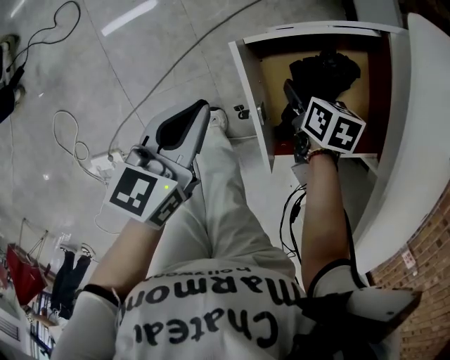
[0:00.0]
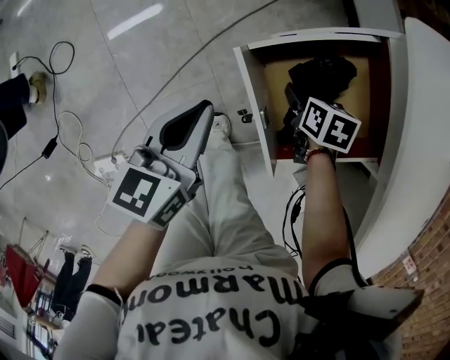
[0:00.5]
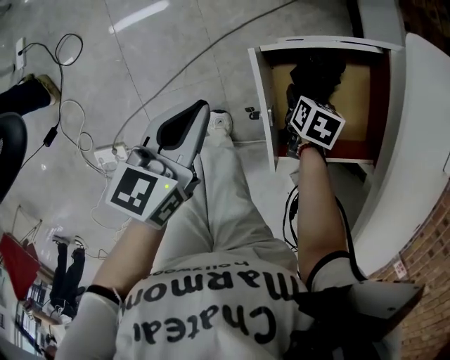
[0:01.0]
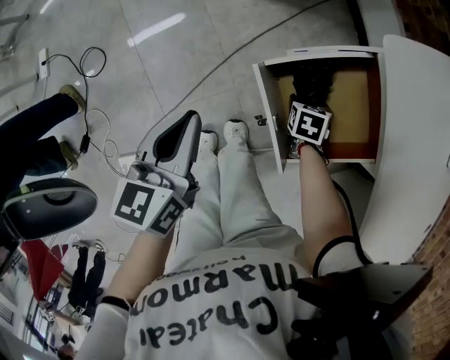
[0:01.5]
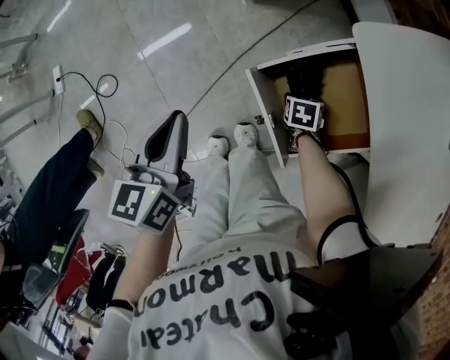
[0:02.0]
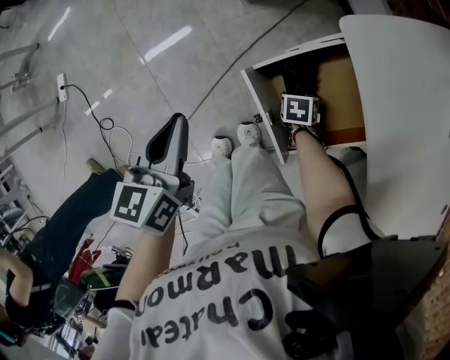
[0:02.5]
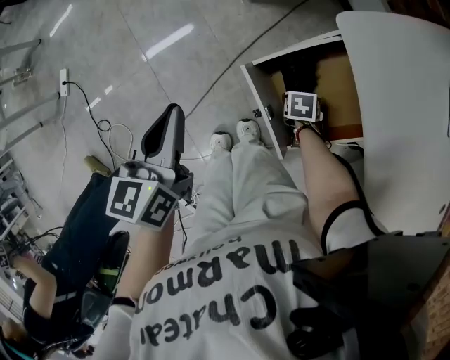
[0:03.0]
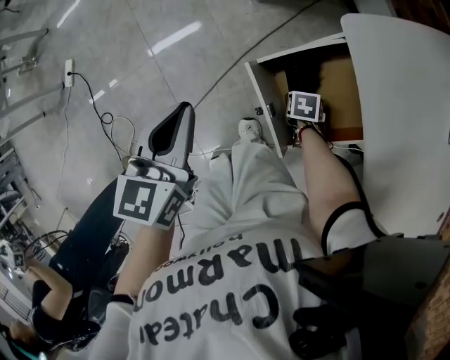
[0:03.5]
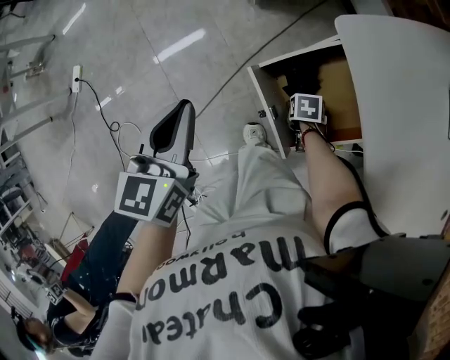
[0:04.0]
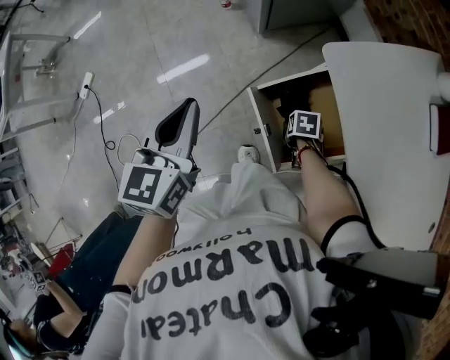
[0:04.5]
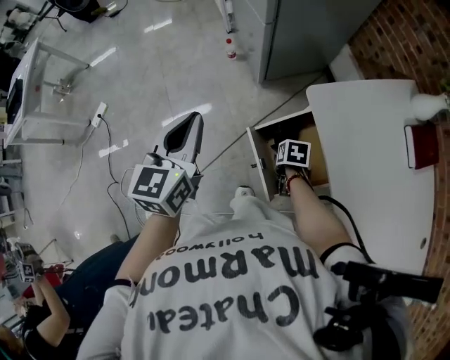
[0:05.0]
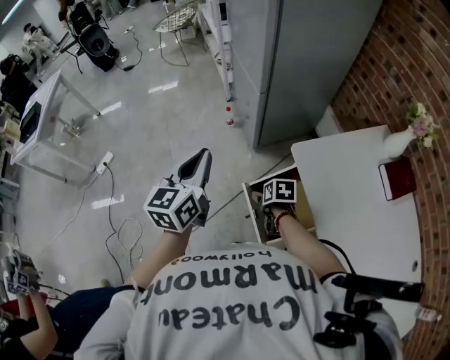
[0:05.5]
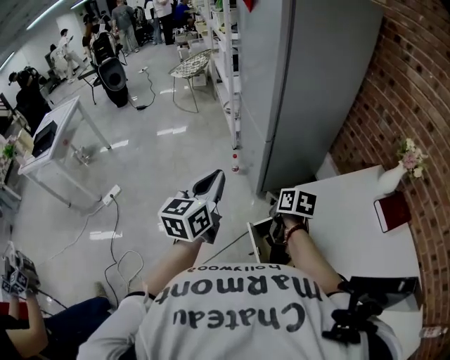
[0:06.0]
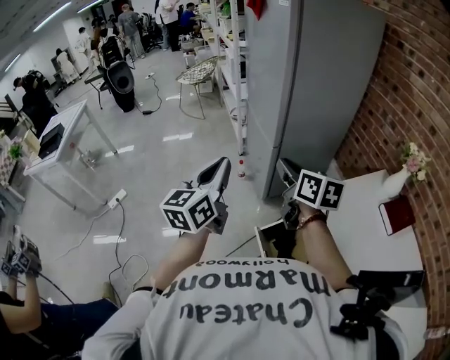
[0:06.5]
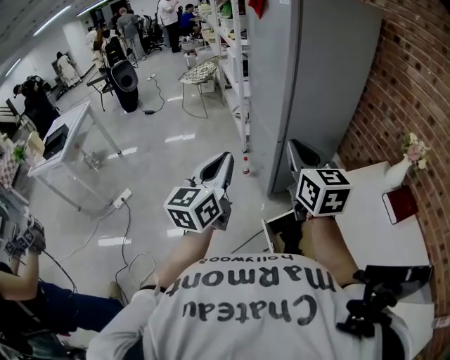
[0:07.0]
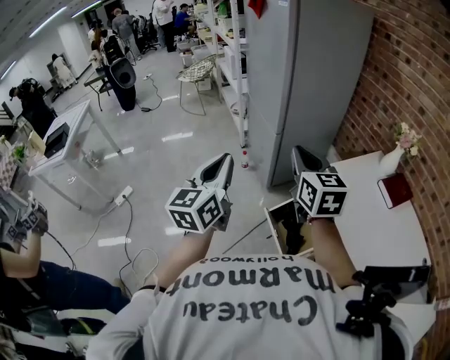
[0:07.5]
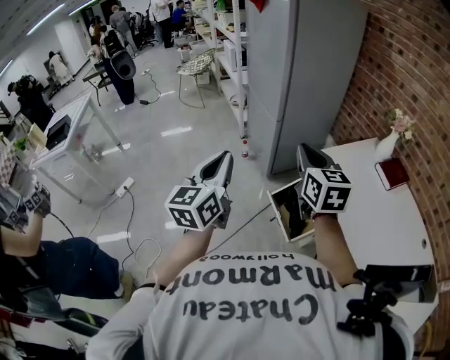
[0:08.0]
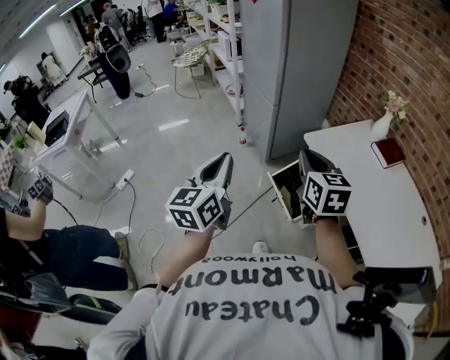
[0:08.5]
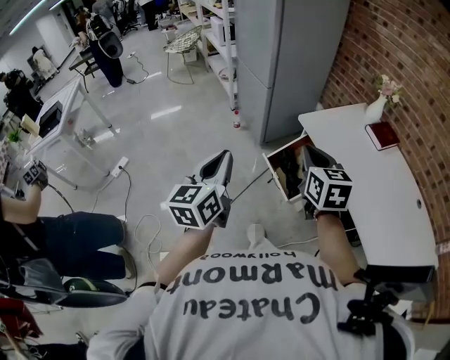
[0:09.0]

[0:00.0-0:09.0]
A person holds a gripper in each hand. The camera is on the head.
0:00.0 to 0:02.0: The left gripper moves upward, about 15 cm.
0:02.0 to 0:04.5: The left gripper heads upward, covering about 10 cm. The right gripper is displaced upward by roughly 5 cm.
0:04.5 to 0:07.0: The right gripper travels upward by some 60 cm, tips its fingers upward by roughly 80 degrees, and closes its fingers; the left gripper is displaced upward by about 25 cm, and changes its angle by about 30 degrees.
0:07.0 to 0:09.0: The two grippers go approximately 25 cm backward. The right gripper rotates approximately 20 degrees.

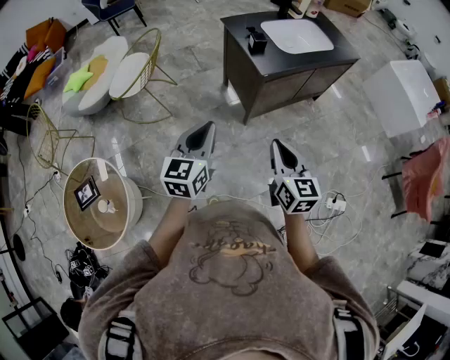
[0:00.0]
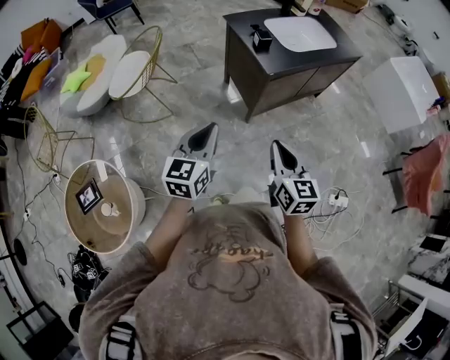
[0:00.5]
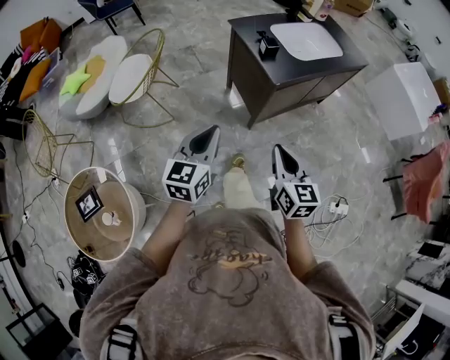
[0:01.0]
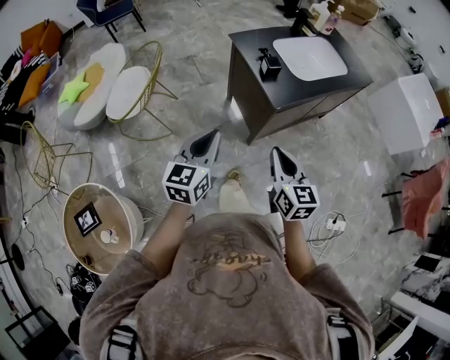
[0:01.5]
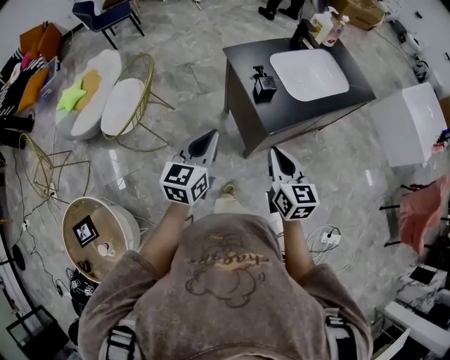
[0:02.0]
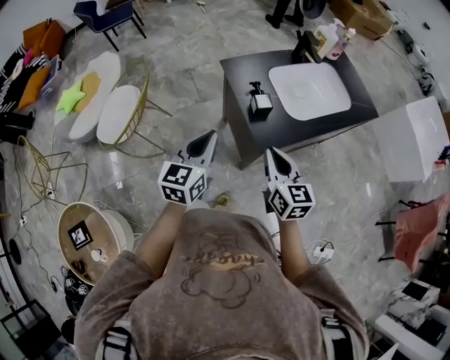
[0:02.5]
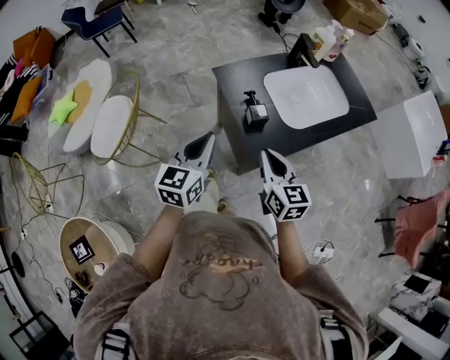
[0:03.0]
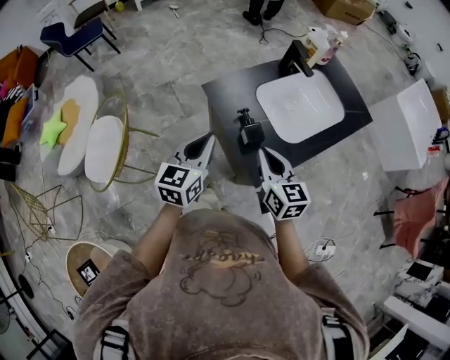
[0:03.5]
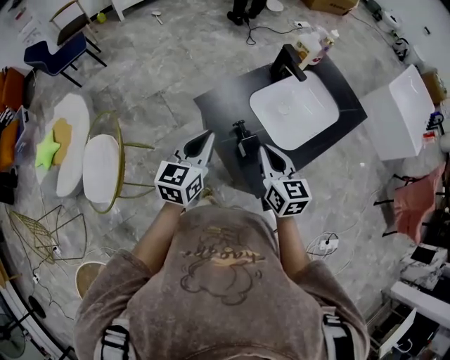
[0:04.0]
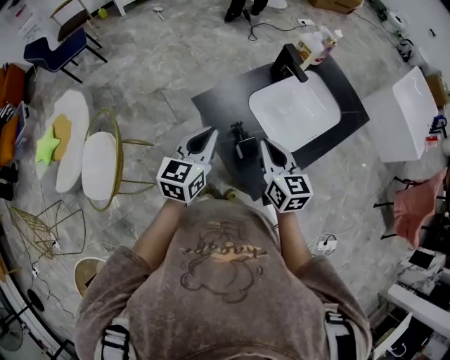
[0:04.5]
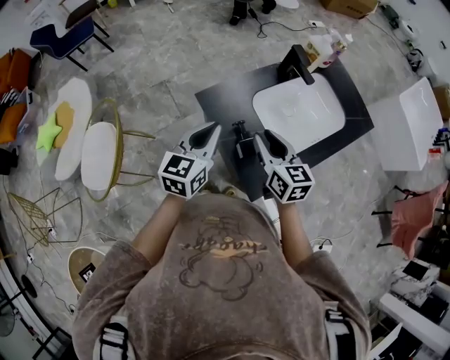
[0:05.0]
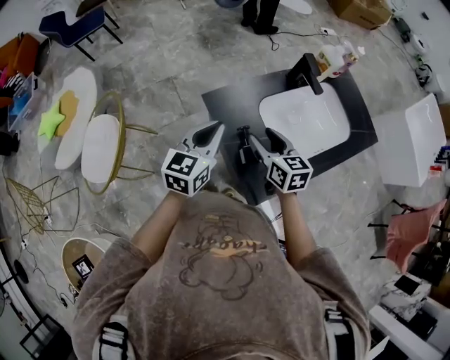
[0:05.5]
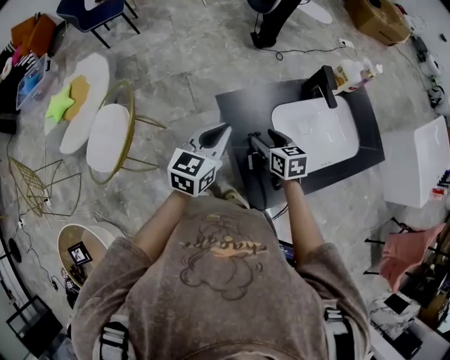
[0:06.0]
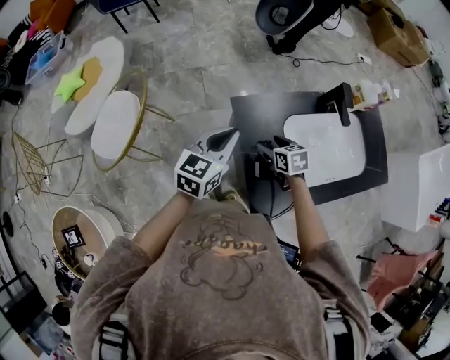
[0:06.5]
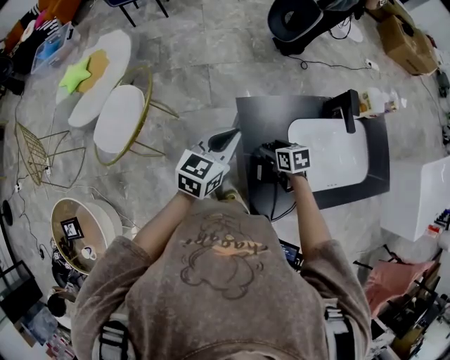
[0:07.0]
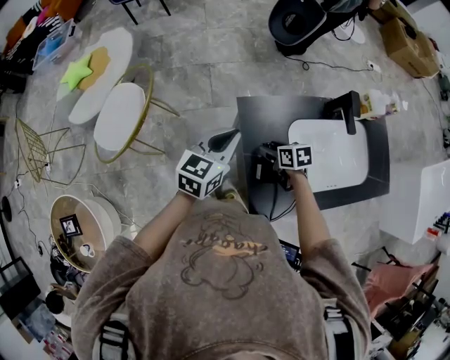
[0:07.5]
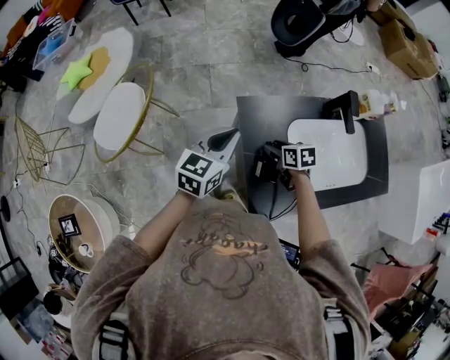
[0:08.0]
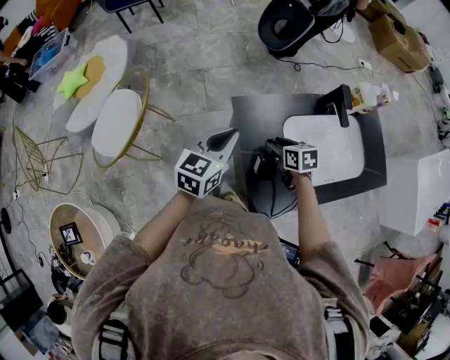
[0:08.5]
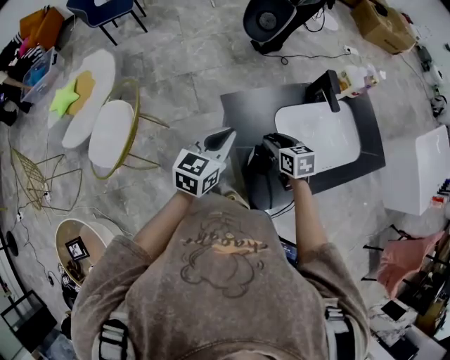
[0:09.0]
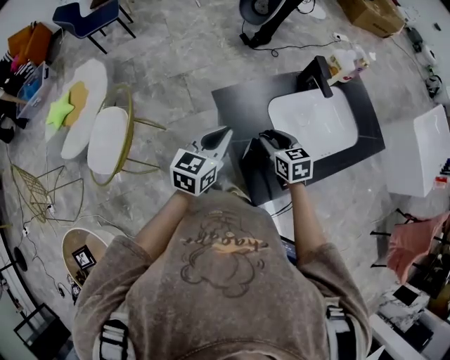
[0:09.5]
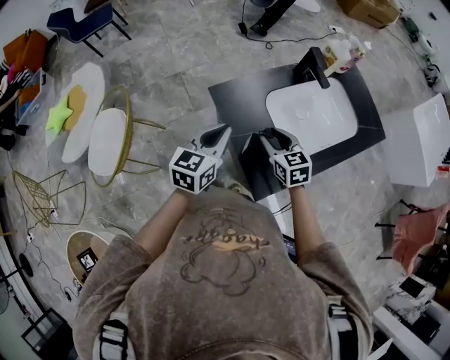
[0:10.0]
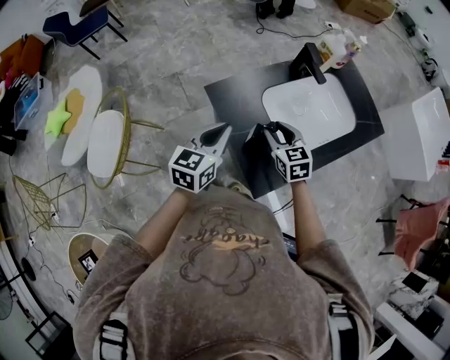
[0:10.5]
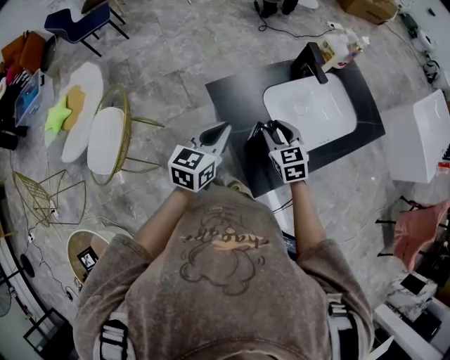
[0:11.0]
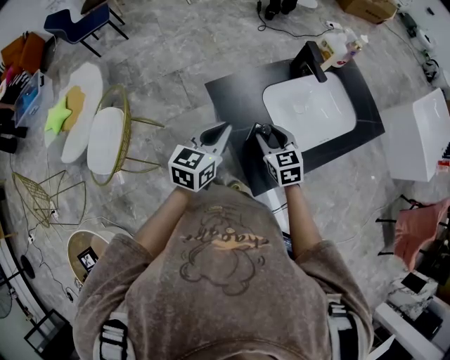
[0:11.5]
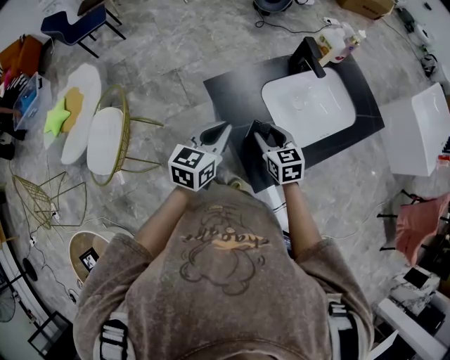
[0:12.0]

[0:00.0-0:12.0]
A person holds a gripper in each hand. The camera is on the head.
0:00.0 to 0:02.0: Both grippers travel together forward, some 30 cm.
0:02.0 to 0:04.0: Both grippers move forward, roughly 30 cm.
0:04.0 to 0:06.0: The right gripper moves forward and downward, roughly 15 cm, swivels roughly 30 degrees, and opens. Meanwhile the left gripper shifts about 5 cm forward.
0:06.0 to 0:08.0: The right gripper travels downward by some 10 cm, and turns by some 20 degrees.
0:08.0 to 0:10.0: The left gripper is displaced backward by about 5 cm; the right gripper goes roughly 10 cm upward and backward, and rotates about 30 degrees.
0:10.0 to 0:12.0: The grippers move only a little.

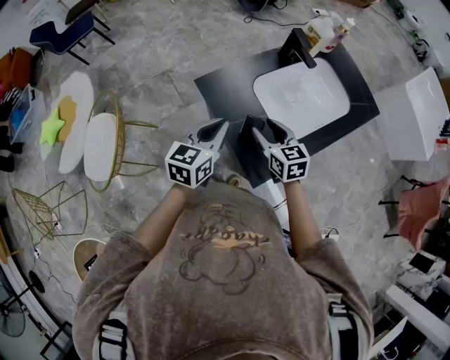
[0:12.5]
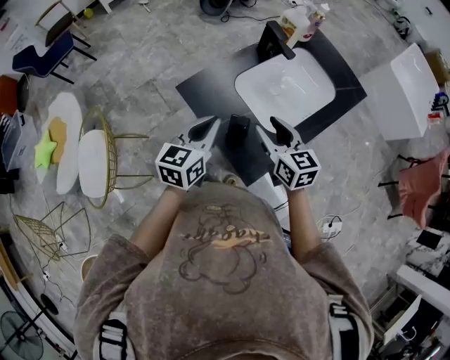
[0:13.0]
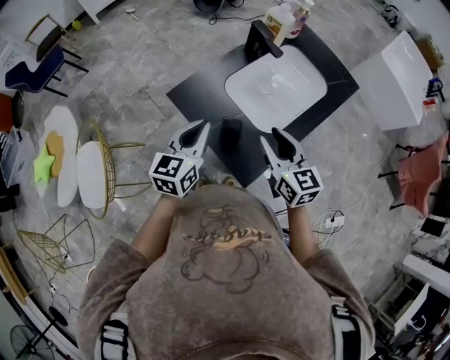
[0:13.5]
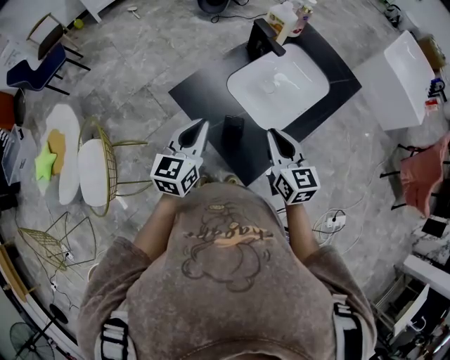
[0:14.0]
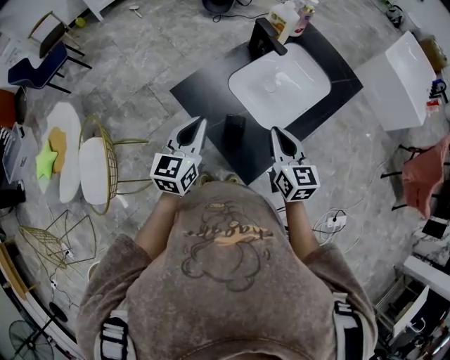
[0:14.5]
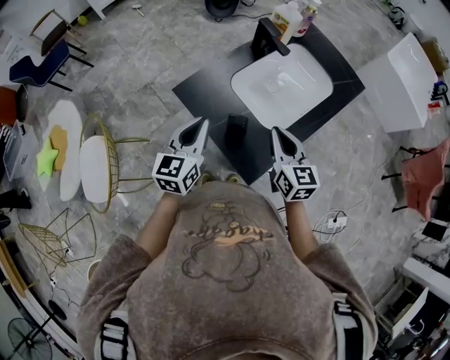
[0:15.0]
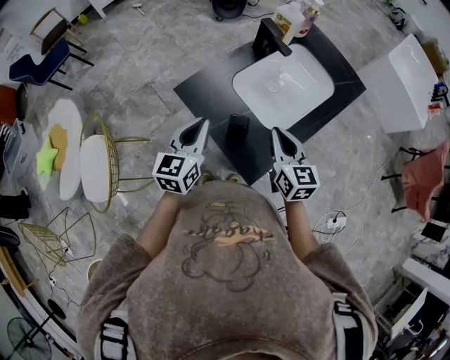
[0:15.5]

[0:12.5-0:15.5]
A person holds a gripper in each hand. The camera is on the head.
0:12.5 to 0:14.0: The right gripper goes some 10 cm to the right and upward, turns by some 20 degrees, and closes its fingers.
0:14.0 to 0:15.5: The grippers stay close to where they were, moving slightly.

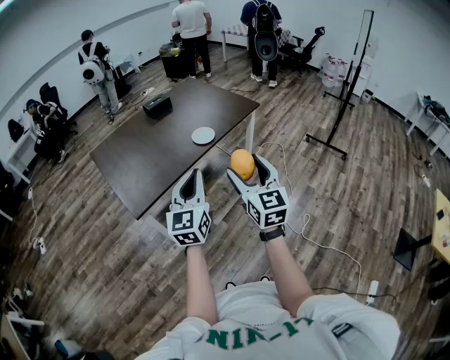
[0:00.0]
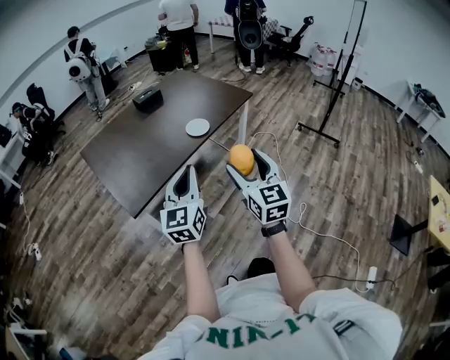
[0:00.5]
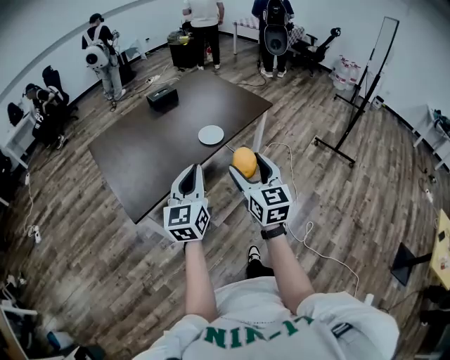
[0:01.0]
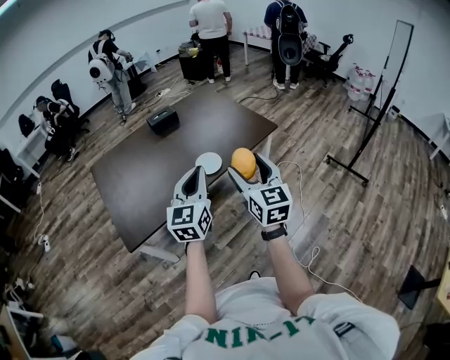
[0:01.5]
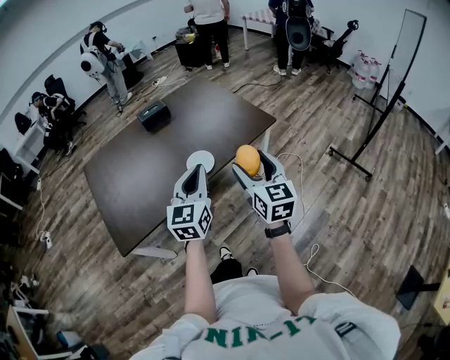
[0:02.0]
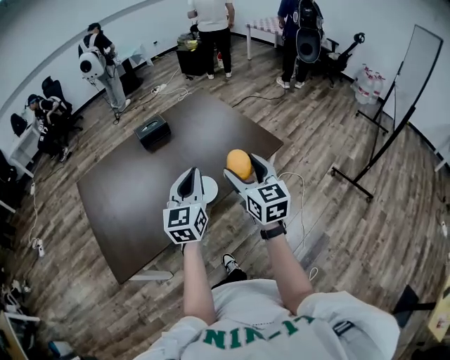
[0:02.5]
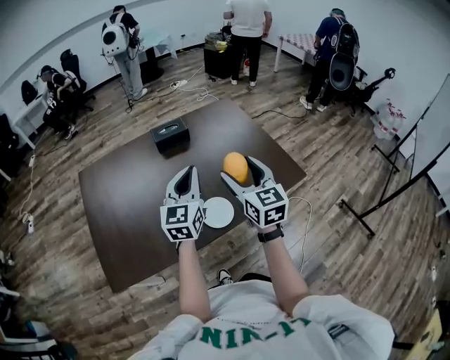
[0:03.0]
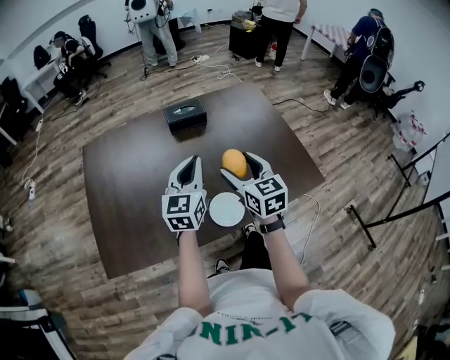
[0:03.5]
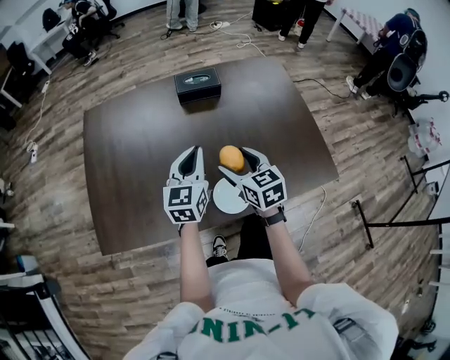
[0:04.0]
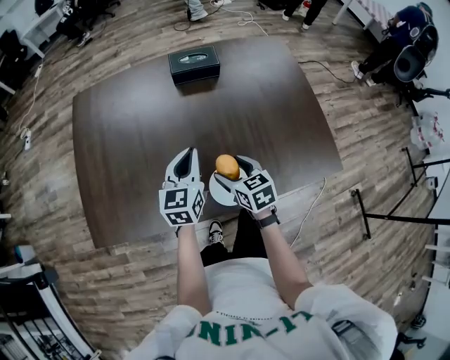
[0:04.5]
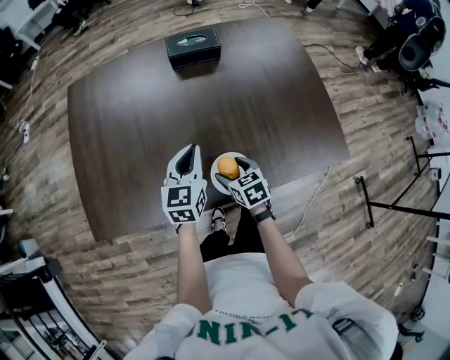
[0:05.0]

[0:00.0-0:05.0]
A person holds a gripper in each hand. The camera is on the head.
0:00.0 to 0:02.5: The pair of grippers is taken forward, roughly 50 cm.
0:02.5 to 0:05.0: The right gripper is displaced downward by some 40 cm, and tips its fingers downward by roughly 40 degrees. Meanwhile the left gripper moves some 40 cm, and changes its angle by roughly 30 degrees.
